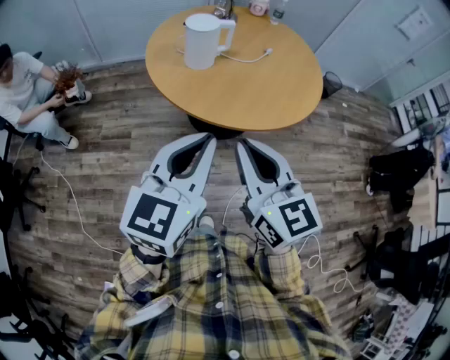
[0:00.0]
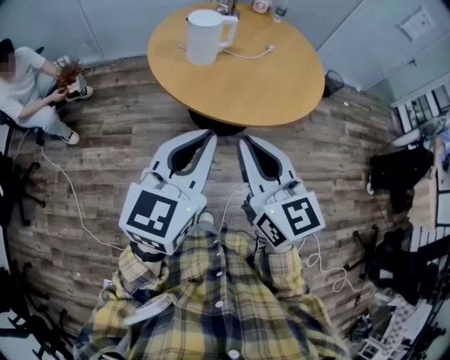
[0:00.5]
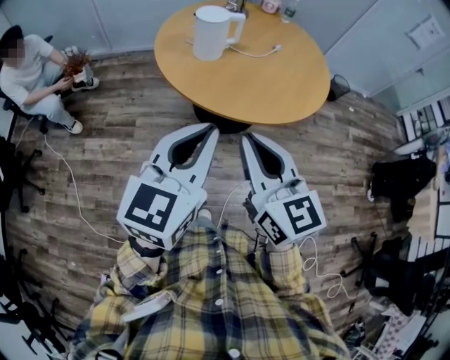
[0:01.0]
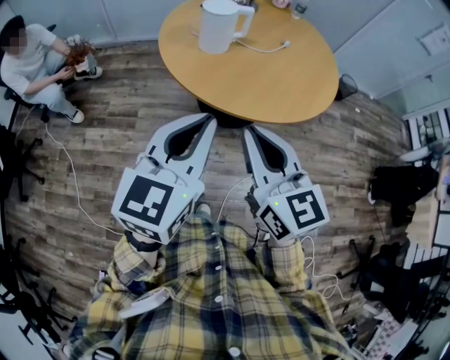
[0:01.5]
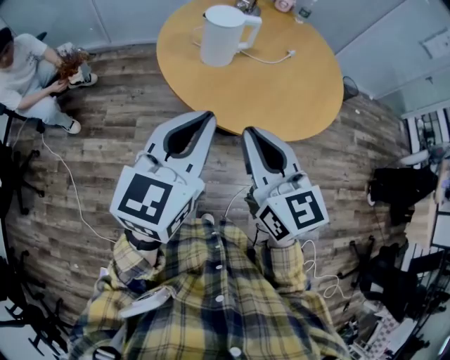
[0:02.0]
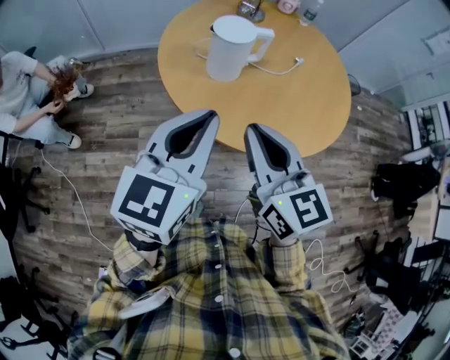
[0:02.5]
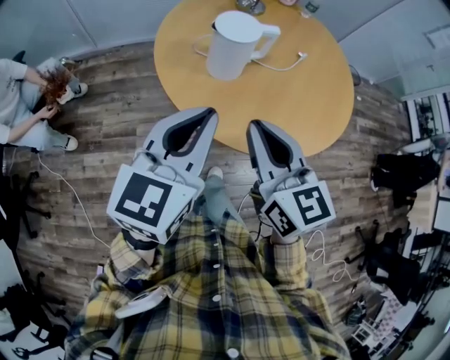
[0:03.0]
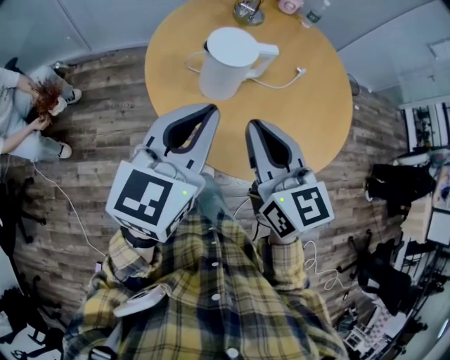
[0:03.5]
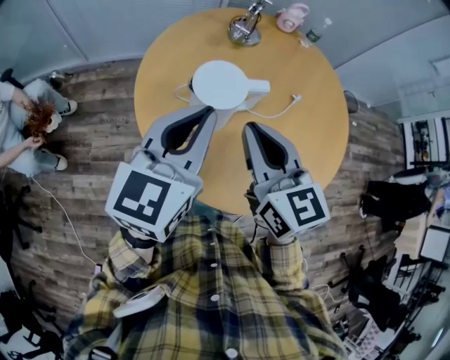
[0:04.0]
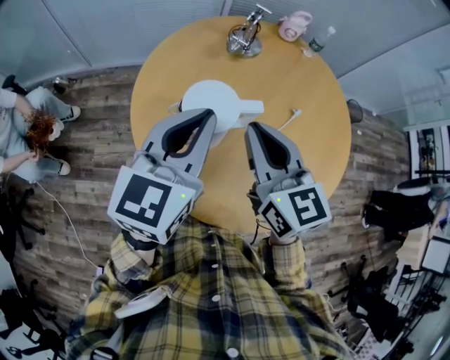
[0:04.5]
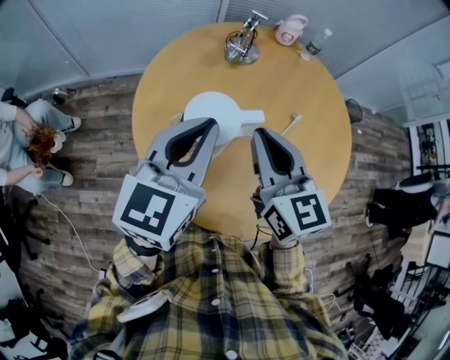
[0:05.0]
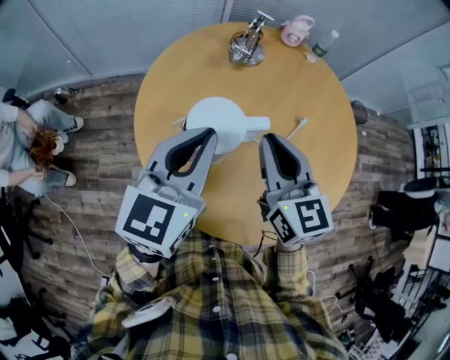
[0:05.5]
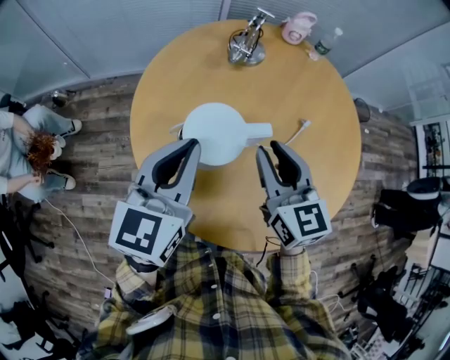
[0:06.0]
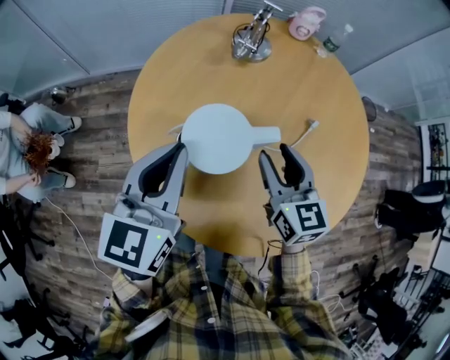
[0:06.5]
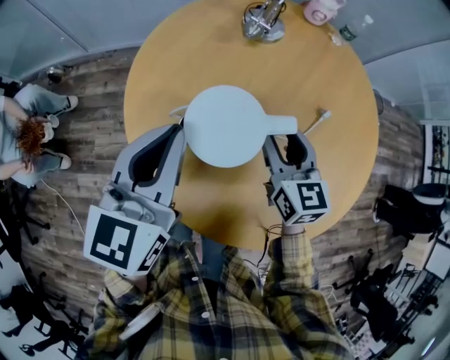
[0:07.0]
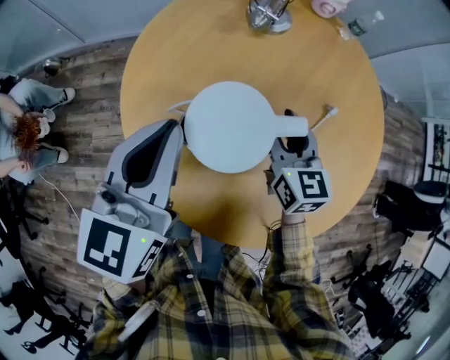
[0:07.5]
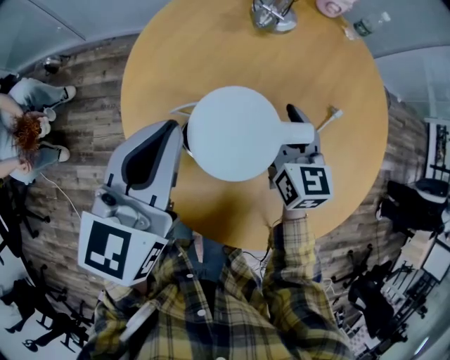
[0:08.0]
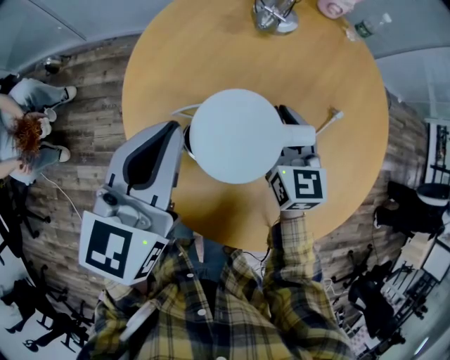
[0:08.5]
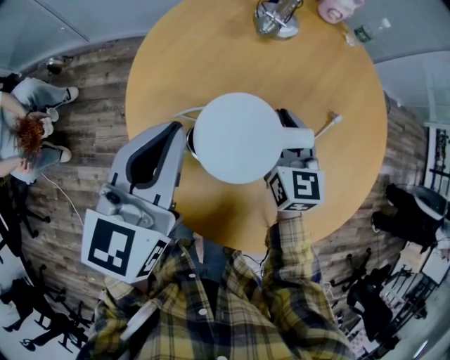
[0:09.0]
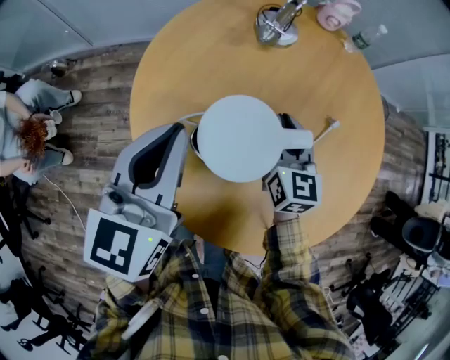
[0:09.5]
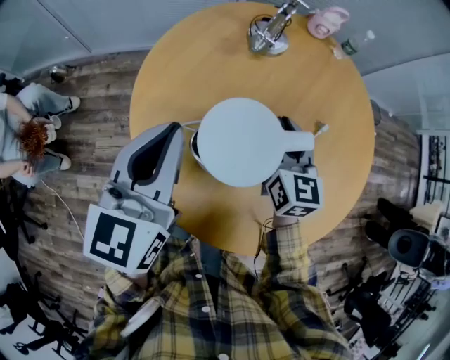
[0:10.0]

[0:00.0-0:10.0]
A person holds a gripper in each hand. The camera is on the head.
0:00.0 to 0:02.0: The grippers both shift forward by some 10 cm.
0:02.0 to 0:04.0: Both grippers move forward, roughly 30 cm.
0:04.0 to 0:06.0: The right gripper goes some 15 cm forward, downward and to the right. Meanwhile the left gripper heads forward, covering some 10 cm.
0:06.0 to 0:08.0: The right gripper moves downward and forward, about 15 cm, and opens its fingers. Meanwhile the left gripper changes place by some 10 cm.
0:08.0 to 0:10.0: The right gripper changes place by approximately 5 cm, and closes its fingers.

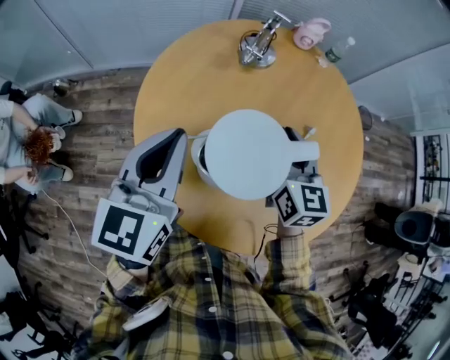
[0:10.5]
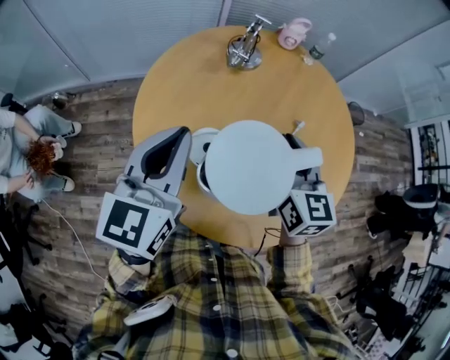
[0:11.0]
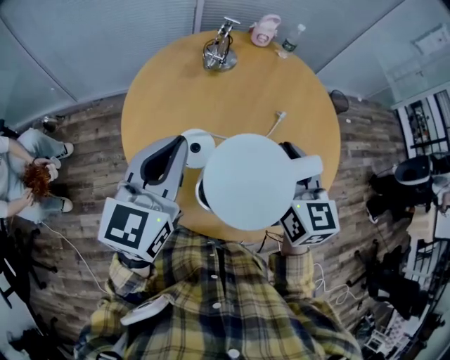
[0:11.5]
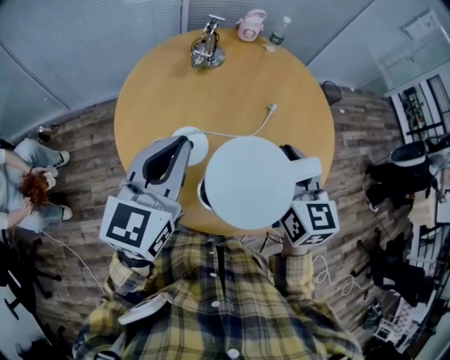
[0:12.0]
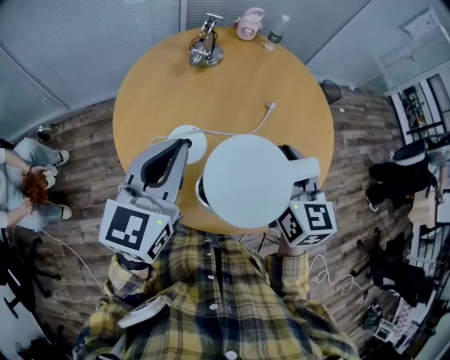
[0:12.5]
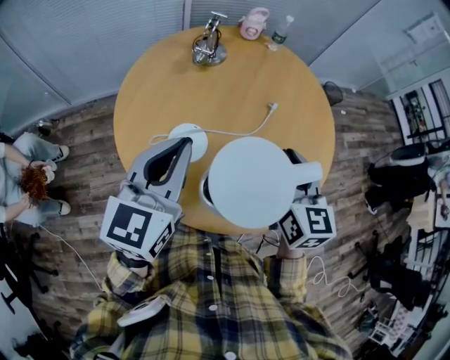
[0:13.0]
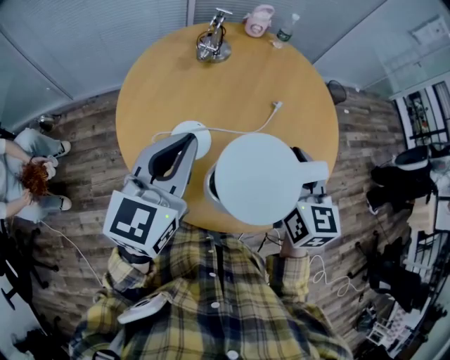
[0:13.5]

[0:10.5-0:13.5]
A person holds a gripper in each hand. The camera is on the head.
0:10.5 to 0:12.0: The right gripper goes approximately 15 cm backward, to the right and upward. Meanwhile the left gripper travels to the right and backward by roughly 10 cm.
0:12.0 to 0:13.5: There are only small adjustments of the grippers.

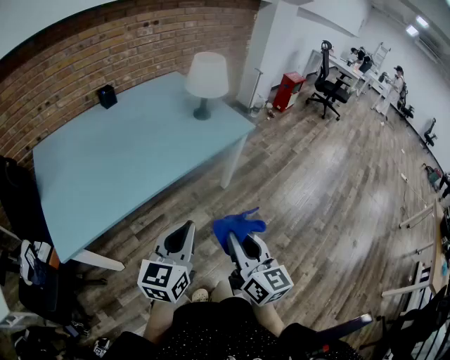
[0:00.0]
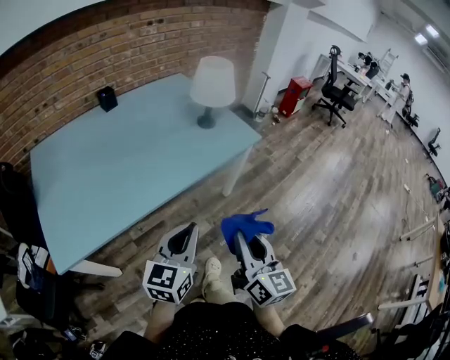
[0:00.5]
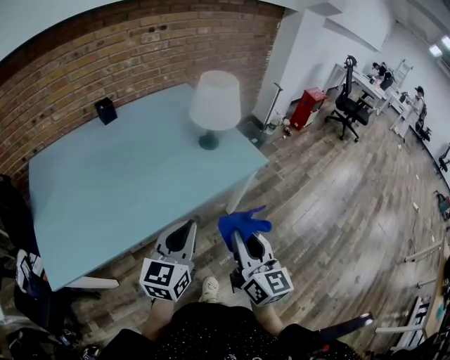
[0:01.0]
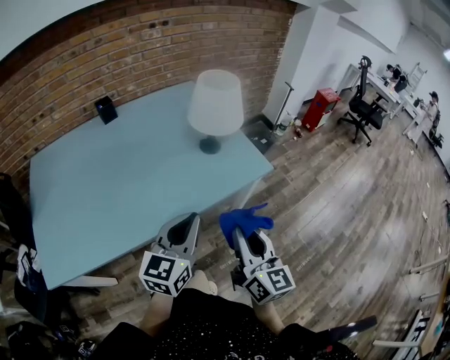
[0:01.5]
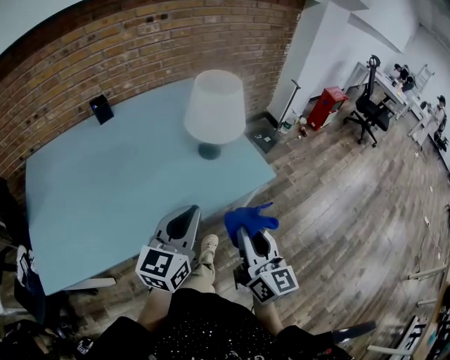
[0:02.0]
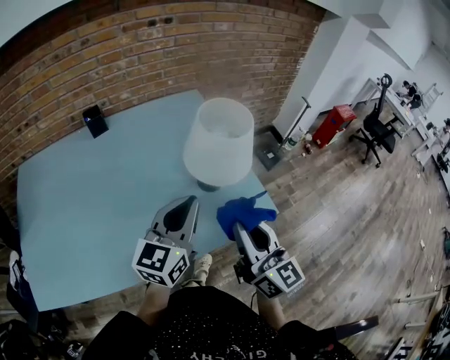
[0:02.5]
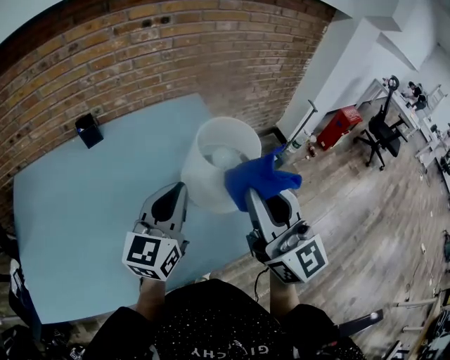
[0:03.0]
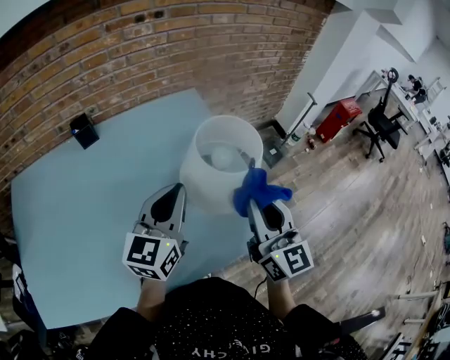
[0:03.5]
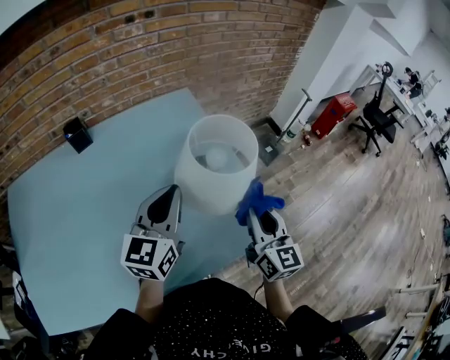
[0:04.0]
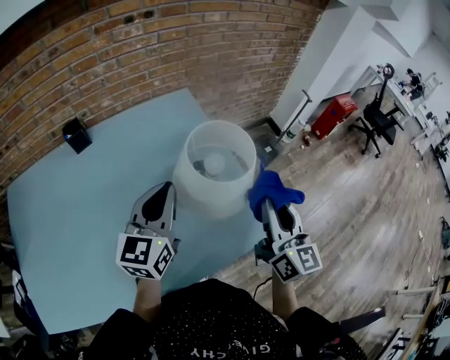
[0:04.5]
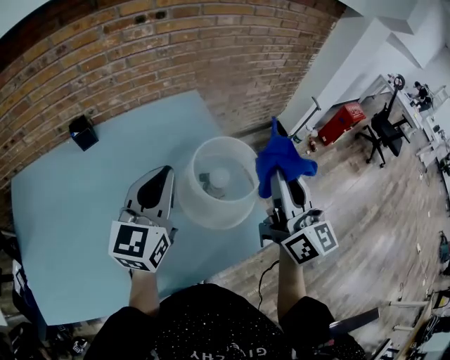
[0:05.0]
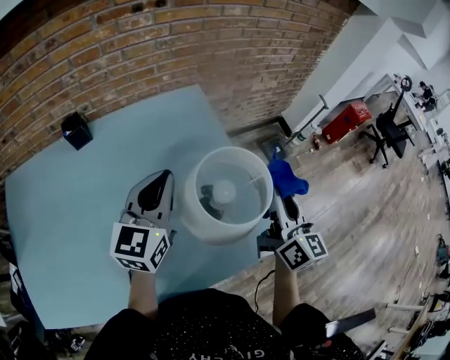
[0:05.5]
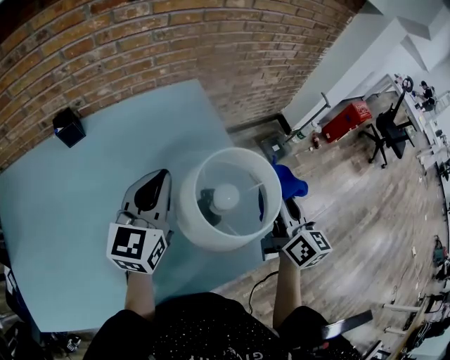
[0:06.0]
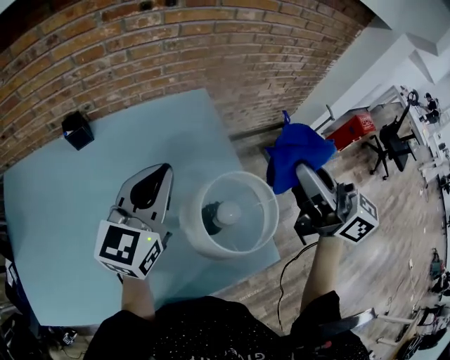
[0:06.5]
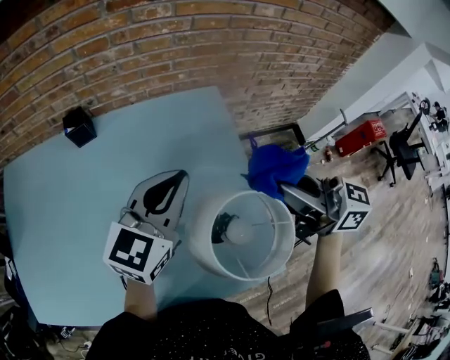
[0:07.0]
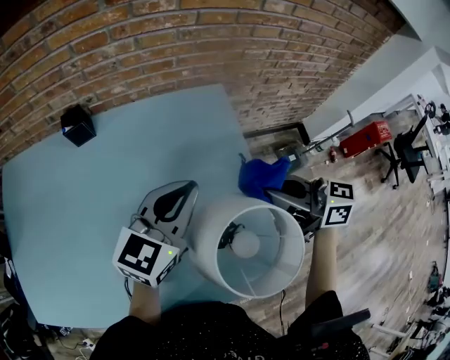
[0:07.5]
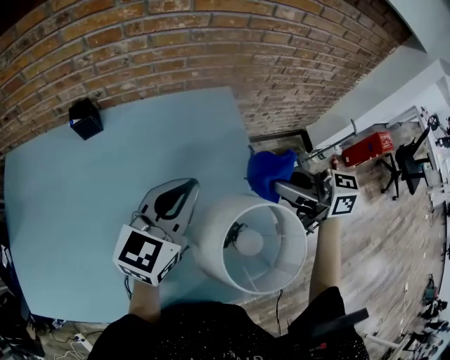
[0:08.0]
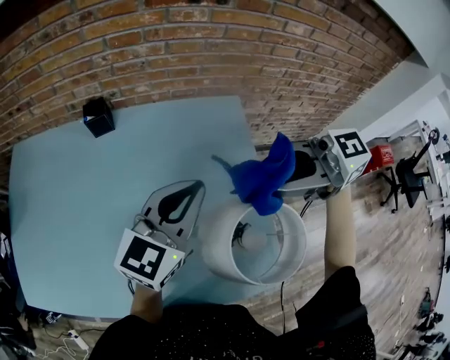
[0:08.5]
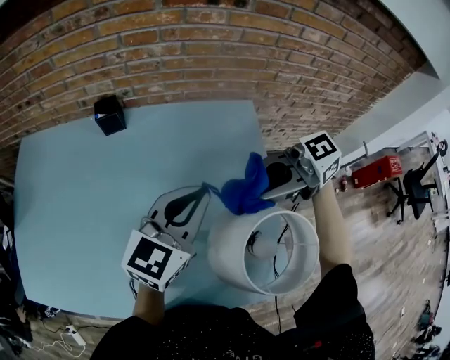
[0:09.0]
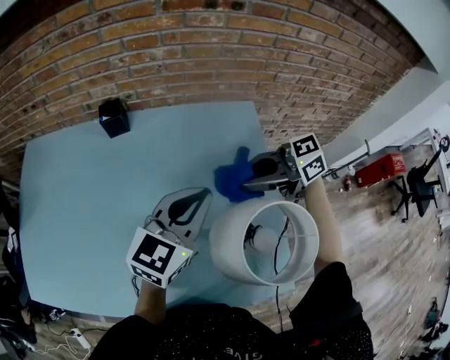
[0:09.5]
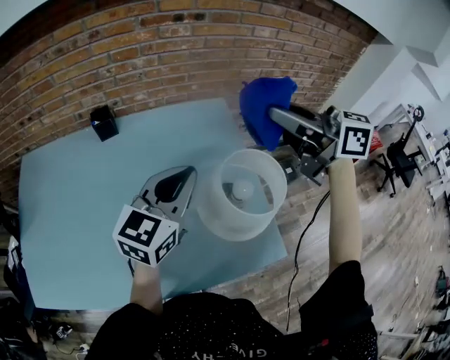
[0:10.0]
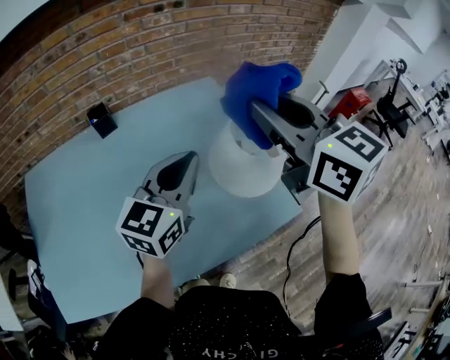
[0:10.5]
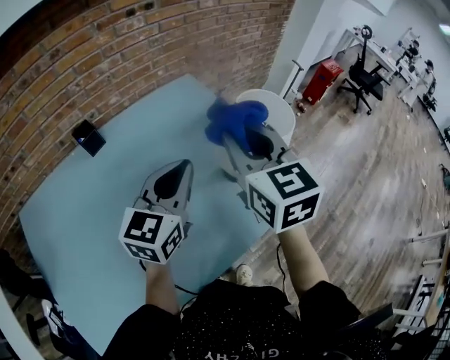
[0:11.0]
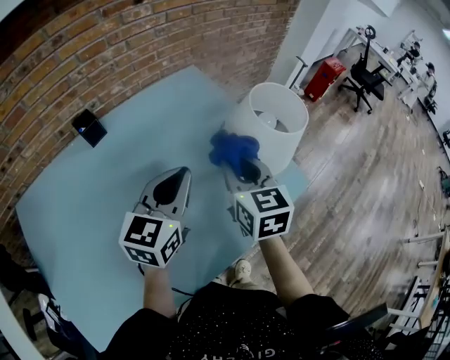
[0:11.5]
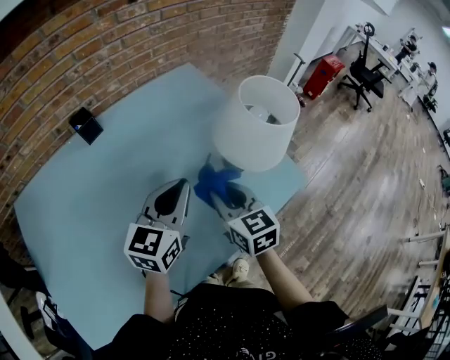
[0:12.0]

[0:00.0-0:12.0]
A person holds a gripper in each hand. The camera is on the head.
0:00.0 to 0:02.0: The grippers both shift forward by some 35 cm.
0:02.0 to 0:04.0: Both grippers travel together forward, roughly 30 cm.
0:04.0 to 0:06.0: The grippers both shift forward by roughly 15 cm. The right gripper travels upward and back again, roughly 15 cm each way.
0:06.0 to 0:08.0: The right gripper reaches about 20 cm upward, then returns, and changes its angle by about 70 degrees. The left gripper moves roughly 10 cm upward and comes back.
0:08.0 to 0:10.0: The right gripper goes up and down, approximately 20 cm each way, reversing 2 times. The left gripper moves roughly 10 cm.
0:10.0 to 0:12.0: The right gripper is displaced downward by some 30 cm, and swivels some 60 degrees, while the left gripper shifts by roughly 15 cm.

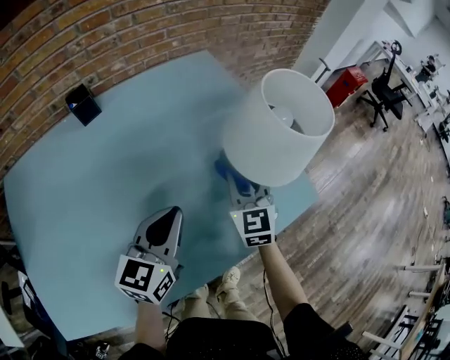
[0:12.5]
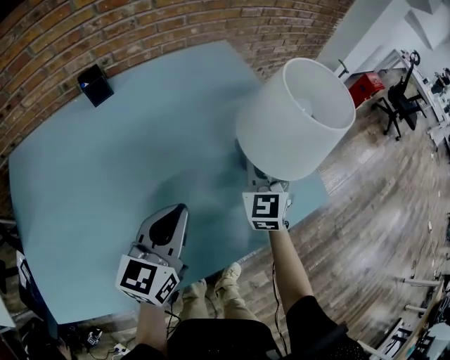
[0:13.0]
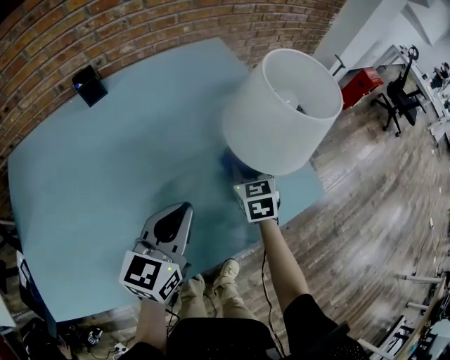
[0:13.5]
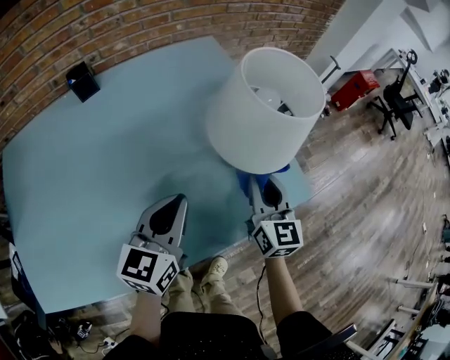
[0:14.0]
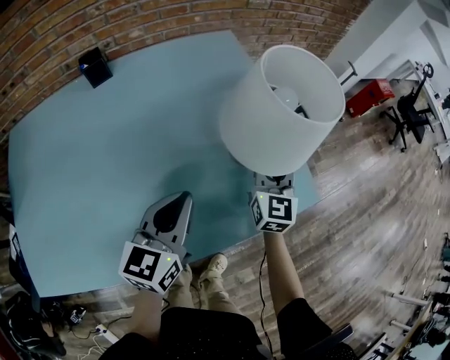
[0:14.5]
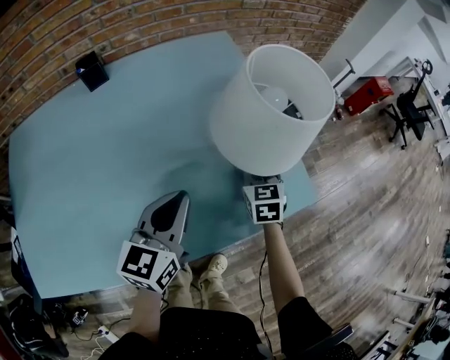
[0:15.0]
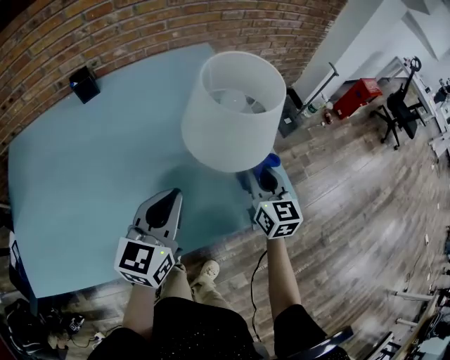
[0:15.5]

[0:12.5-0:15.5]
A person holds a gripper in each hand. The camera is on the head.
0:12.5 to 0:14.0: The right gripper heads to the right, covering some 10 cm, and turns by some 20 degrees. The left gripper moves to the right, some 5 cm.
0:14.0 to 0:15.5: The right gripper reaches about 10 cm downward, then returns.
